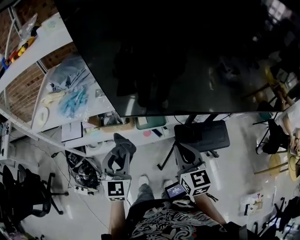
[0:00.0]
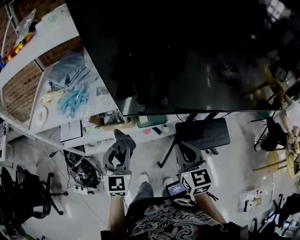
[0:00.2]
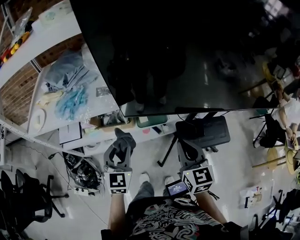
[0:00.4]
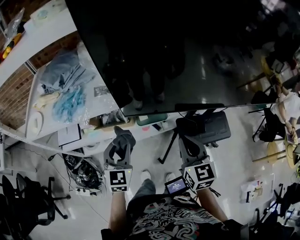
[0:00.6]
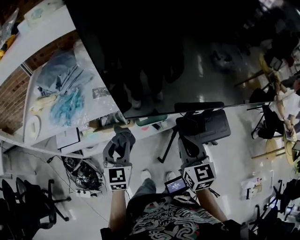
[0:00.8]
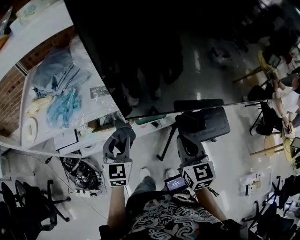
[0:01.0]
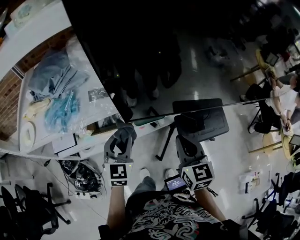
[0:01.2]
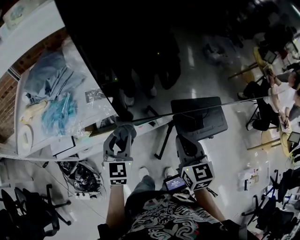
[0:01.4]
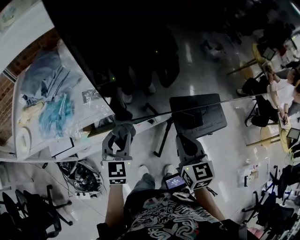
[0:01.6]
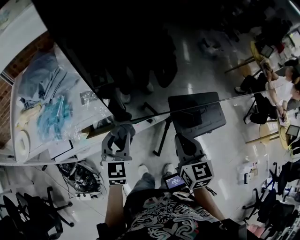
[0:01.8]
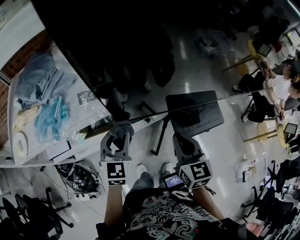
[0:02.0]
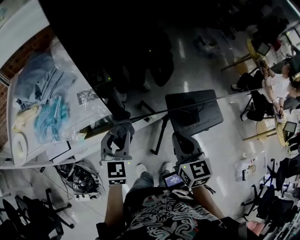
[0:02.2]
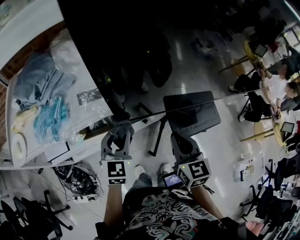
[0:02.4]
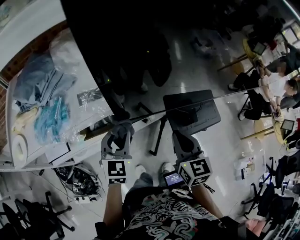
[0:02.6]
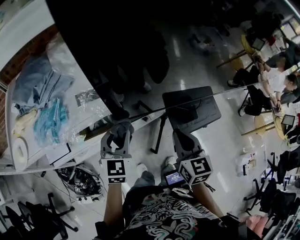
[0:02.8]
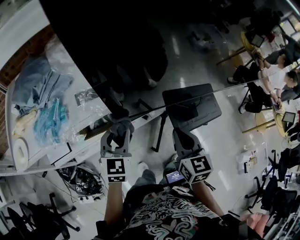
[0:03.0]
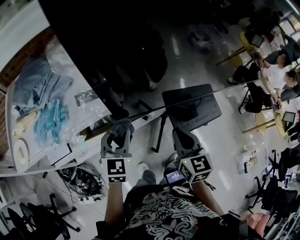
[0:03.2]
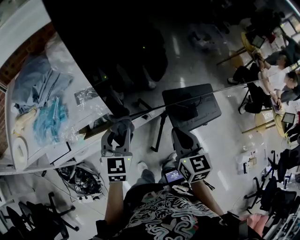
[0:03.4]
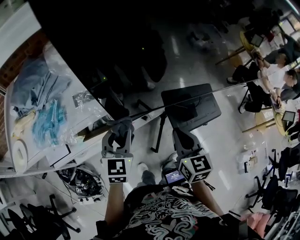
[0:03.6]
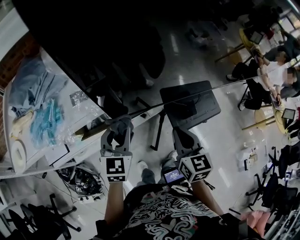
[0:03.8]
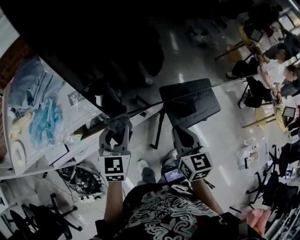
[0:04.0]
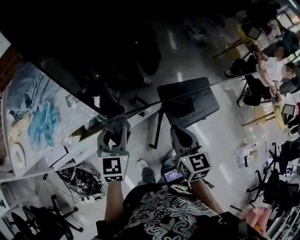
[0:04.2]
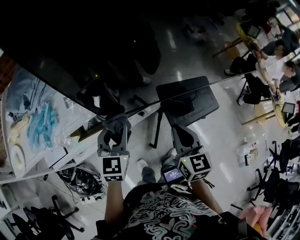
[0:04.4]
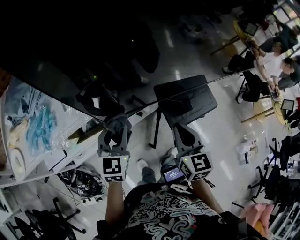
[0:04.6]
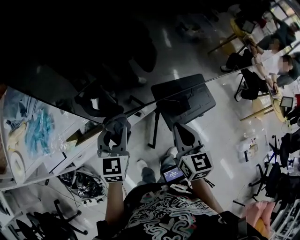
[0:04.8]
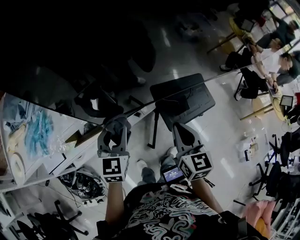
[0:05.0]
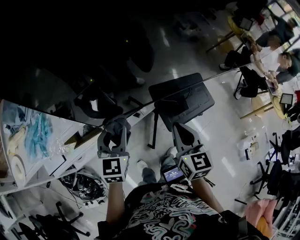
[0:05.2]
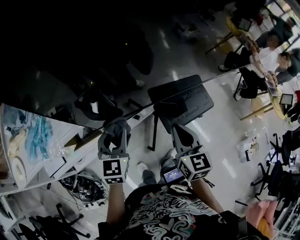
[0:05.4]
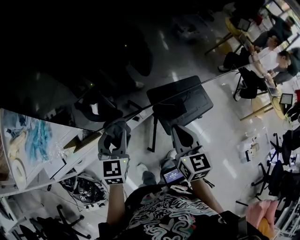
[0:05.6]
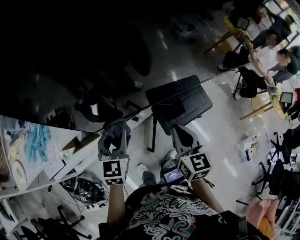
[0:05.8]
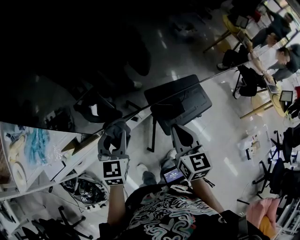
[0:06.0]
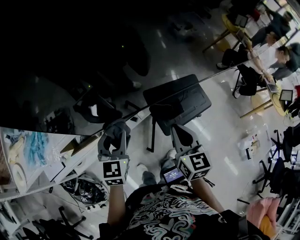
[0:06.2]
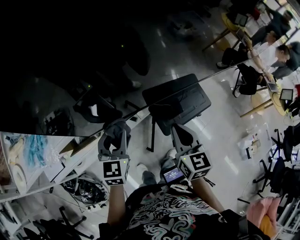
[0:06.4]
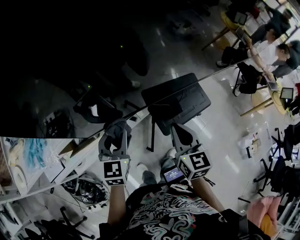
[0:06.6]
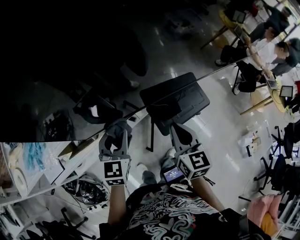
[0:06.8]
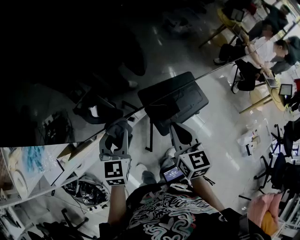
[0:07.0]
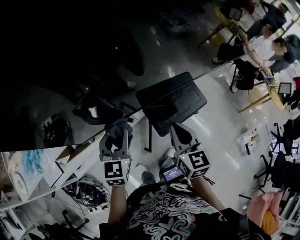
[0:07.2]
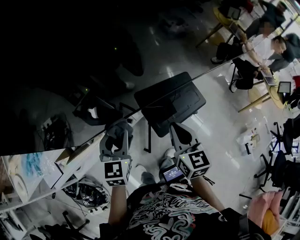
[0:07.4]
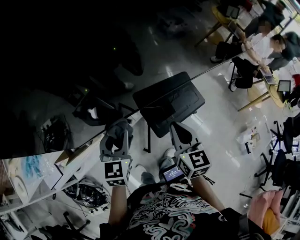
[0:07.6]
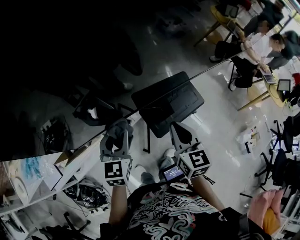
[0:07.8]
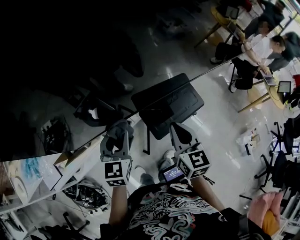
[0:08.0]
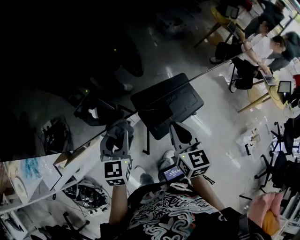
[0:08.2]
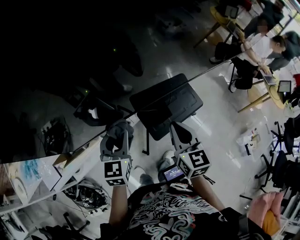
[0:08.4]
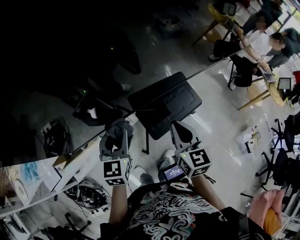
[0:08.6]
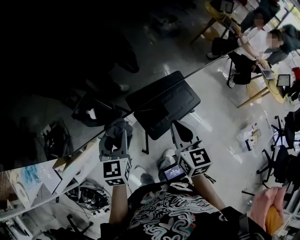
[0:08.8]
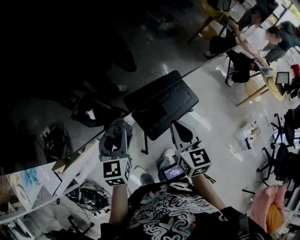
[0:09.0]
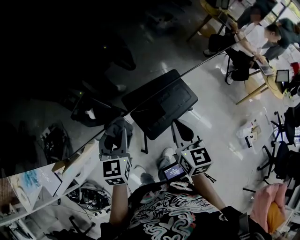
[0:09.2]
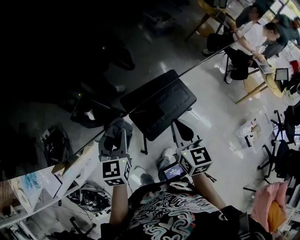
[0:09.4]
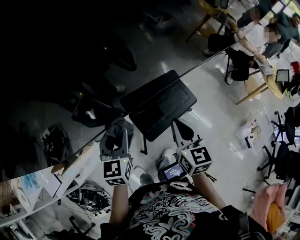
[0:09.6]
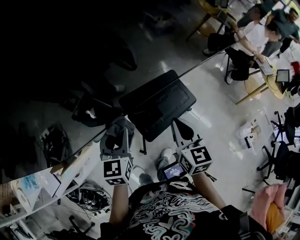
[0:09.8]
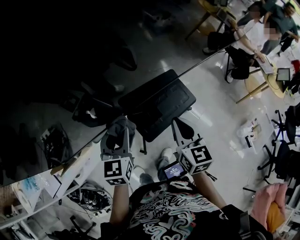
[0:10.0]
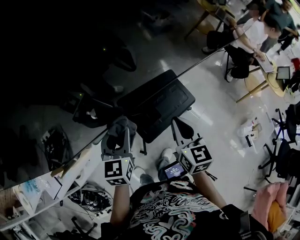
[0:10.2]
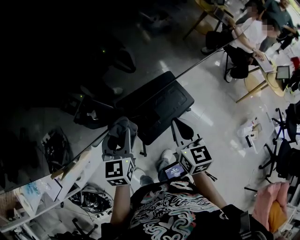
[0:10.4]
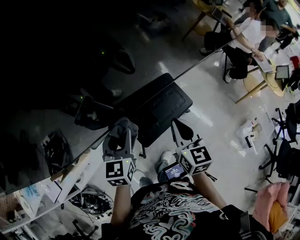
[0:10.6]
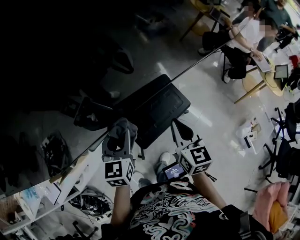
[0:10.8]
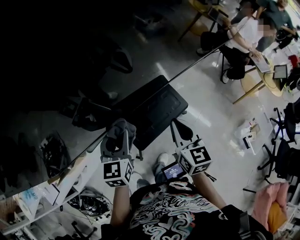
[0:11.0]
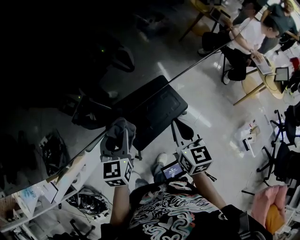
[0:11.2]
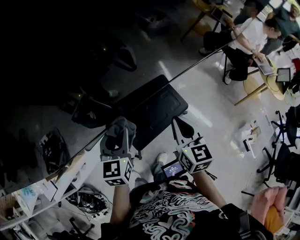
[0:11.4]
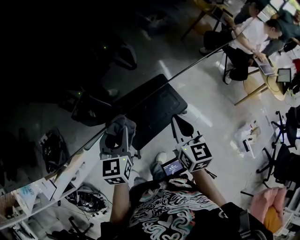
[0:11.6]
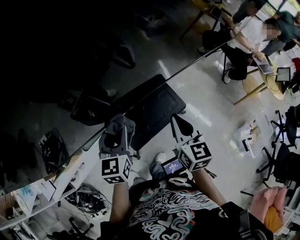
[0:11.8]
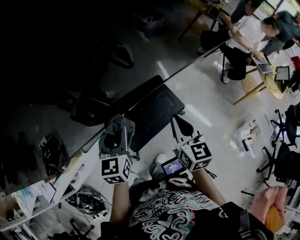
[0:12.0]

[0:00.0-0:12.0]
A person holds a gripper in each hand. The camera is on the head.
0:00.0 to 0:01.6: The right gripper goes some 10 cm forward and to the left, while the left gripper moves forward, approximately 15 cm.
0:01.6 to 0:04.4: There are only small adjustments of the grippers.
0:04.4 to 0:06.0: Both grippers move to the right, some 10 cm.
0:06.0 to 0:07.6: Both grippers travel together to the right, about 5 cm.
0:07.6 to 0:09.0: Both grippers travel together to the right, some 5 cm.
0:09.0 to 0:10.4: Both grippers travel together to the right, some 10 cm.
0:10.4 to 0:12.0: Both grippers travel together to the right, approximately 10 cm.

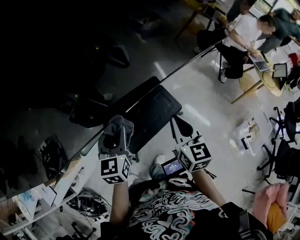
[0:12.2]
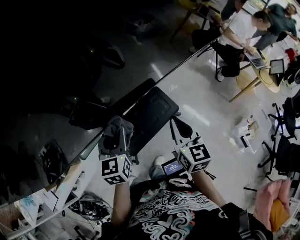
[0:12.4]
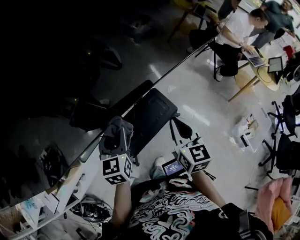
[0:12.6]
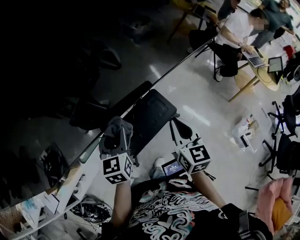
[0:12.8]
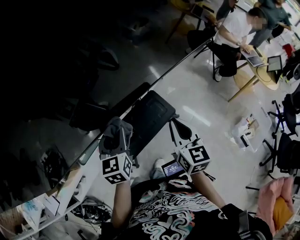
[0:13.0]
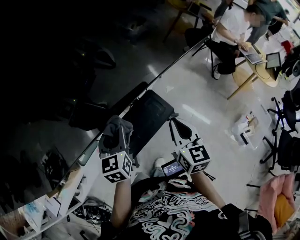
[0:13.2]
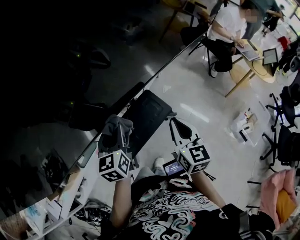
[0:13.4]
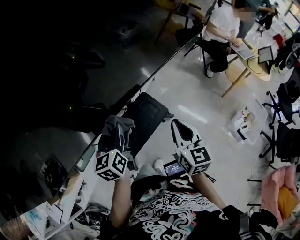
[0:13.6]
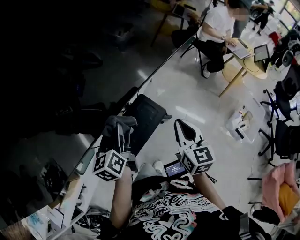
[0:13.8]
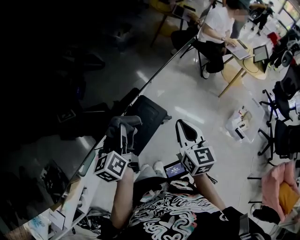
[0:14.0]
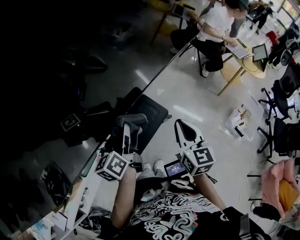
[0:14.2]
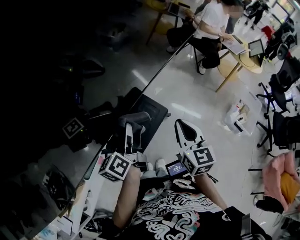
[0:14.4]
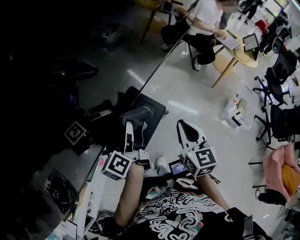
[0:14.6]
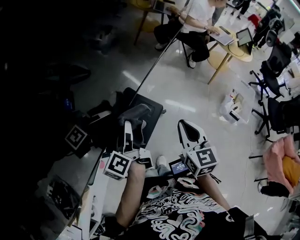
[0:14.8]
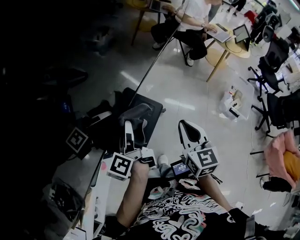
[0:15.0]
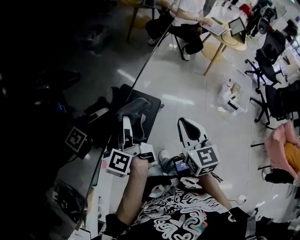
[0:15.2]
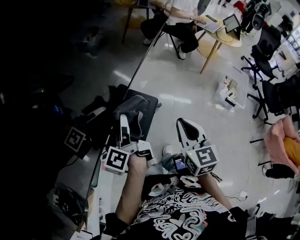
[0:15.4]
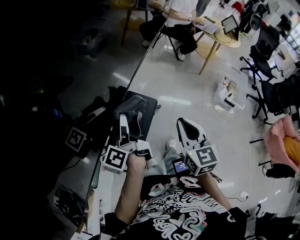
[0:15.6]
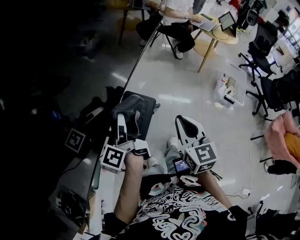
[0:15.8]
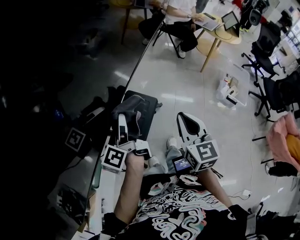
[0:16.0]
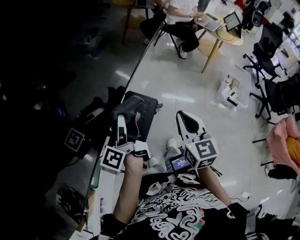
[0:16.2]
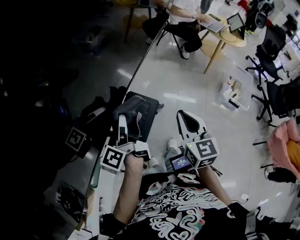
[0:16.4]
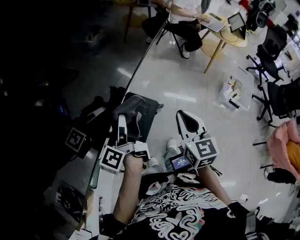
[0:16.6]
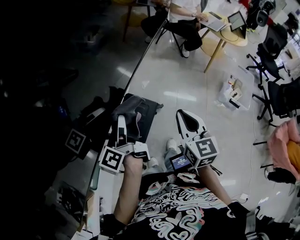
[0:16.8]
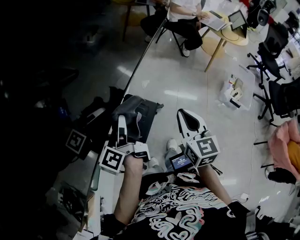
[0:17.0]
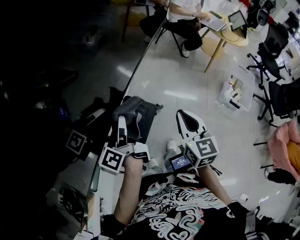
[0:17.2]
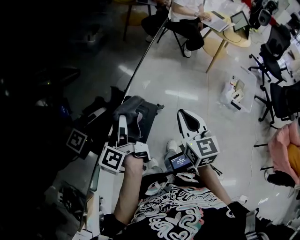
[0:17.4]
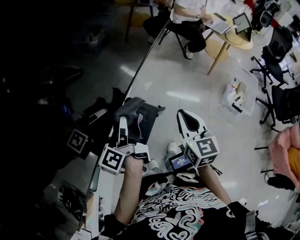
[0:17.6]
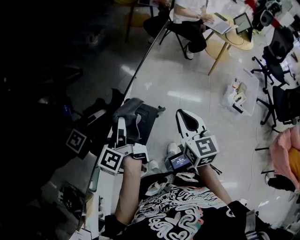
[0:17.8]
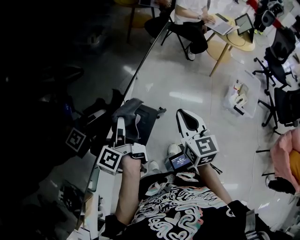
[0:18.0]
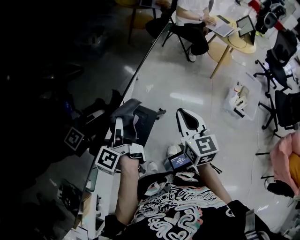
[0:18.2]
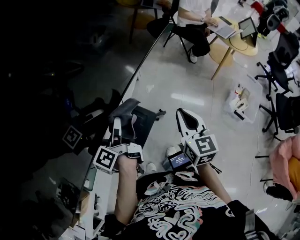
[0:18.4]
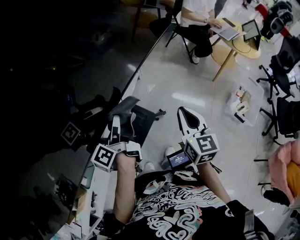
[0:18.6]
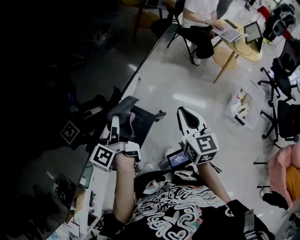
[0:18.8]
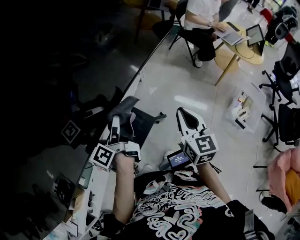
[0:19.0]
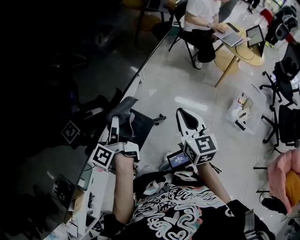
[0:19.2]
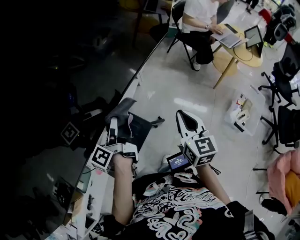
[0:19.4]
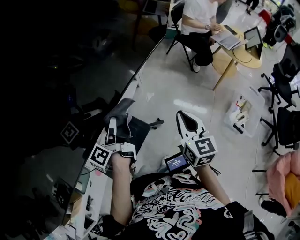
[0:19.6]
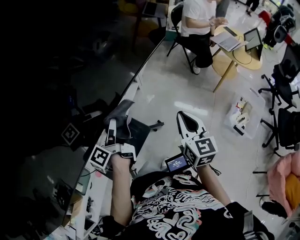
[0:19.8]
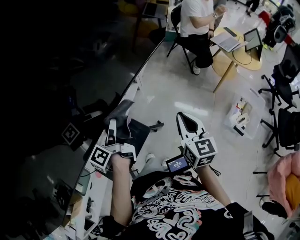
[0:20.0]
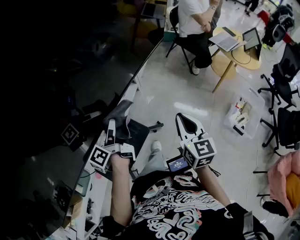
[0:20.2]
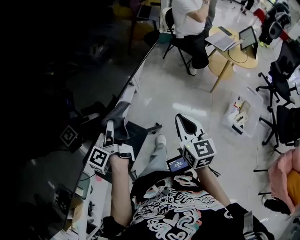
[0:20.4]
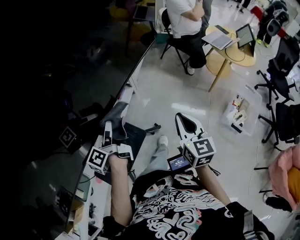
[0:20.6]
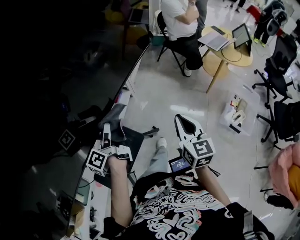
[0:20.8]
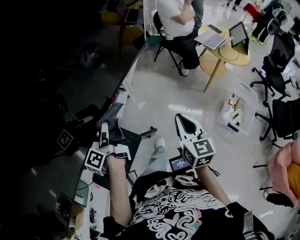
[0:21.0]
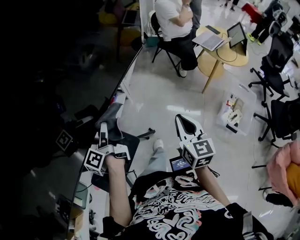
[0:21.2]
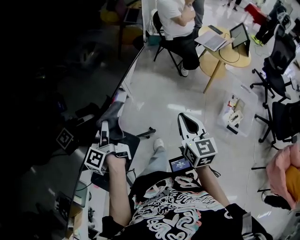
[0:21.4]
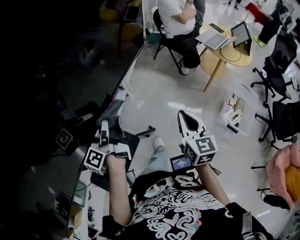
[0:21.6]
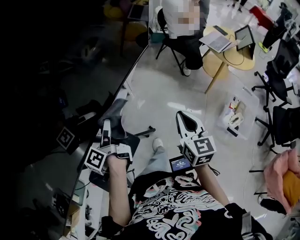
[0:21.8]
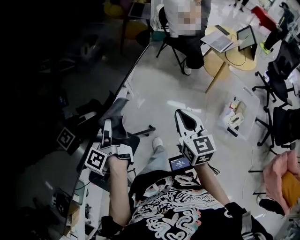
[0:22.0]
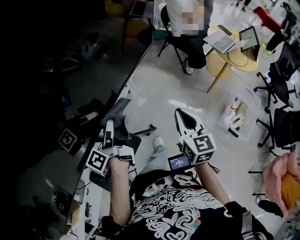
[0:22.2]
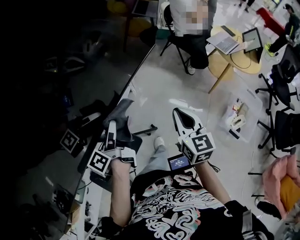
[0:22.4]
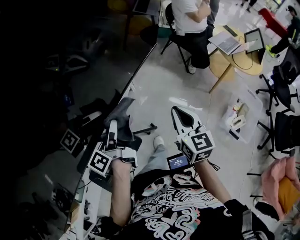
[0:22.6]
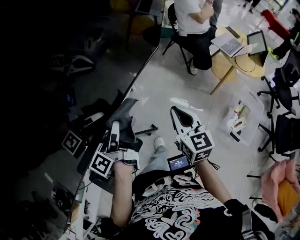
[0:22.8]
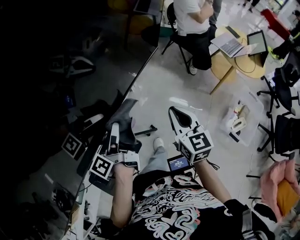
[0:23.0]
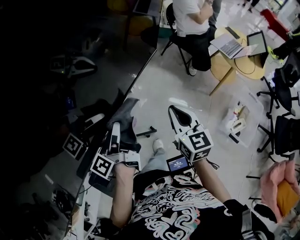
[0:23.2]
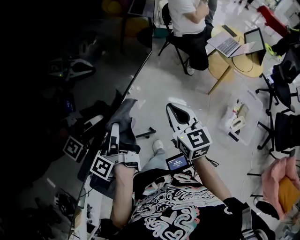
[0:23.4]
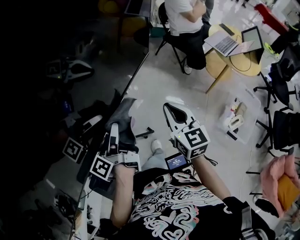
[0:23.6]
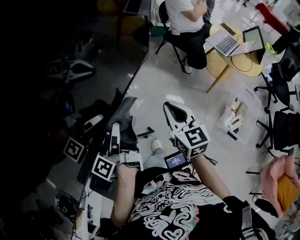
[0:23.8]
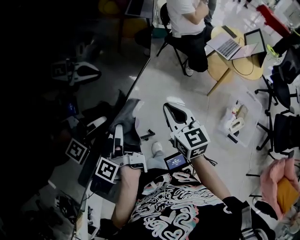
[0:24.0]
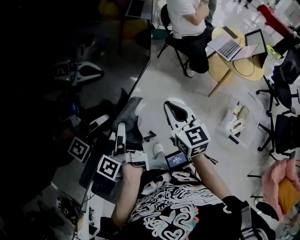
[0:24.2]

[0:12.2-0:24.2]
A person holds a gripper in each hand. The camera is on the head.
0:12.2 to 0:13.8: Both grippers travel together to the right, roughly 10 cm. The left gripper turns by some 30 degrees.
0:13.8 to 0:15.2: The left gripper rotates around the line of its fingers by some 40 degrees, counterclockwise from behind; the right gripper moves about 5 cm.
0:15.2 to 0:16.6: The right gripper moves forward, approximately 5 cm; the left gripper shifts by approximately 5 cm.
0:16.6 to 0:18.2: Both grippers travel together forward and to the right, roughly 15 cm.
0:18.2 to 0:19.8: The grippers move only a little.
0:19.8 to 0:21.2: The left gripper heads to the right and forward, covering about 10 cm; the right gripper is displaced to the right by about 10 cm.
0:21.2 to 0:22.6: The left gripper is displaced forward by about 5 cm. The right gripper moves forward, about 10 cm.
0:22.6 to 0:24.2: The left gripper is displaced to the right and forward by approximately 10 cm; the right gripper is displaced forward by roughly 10 cm.
